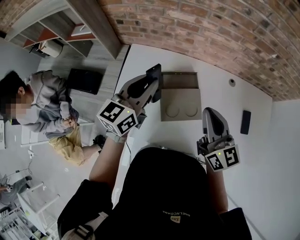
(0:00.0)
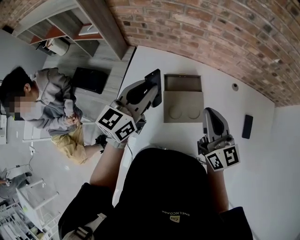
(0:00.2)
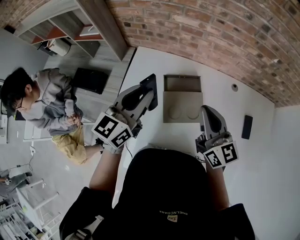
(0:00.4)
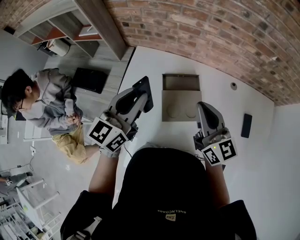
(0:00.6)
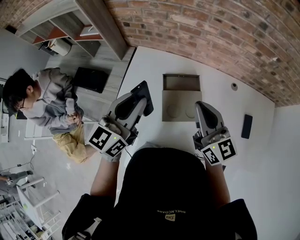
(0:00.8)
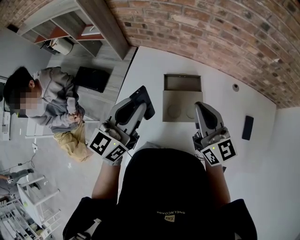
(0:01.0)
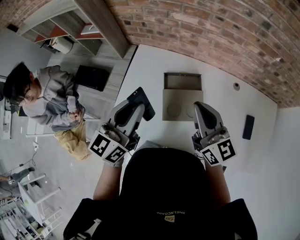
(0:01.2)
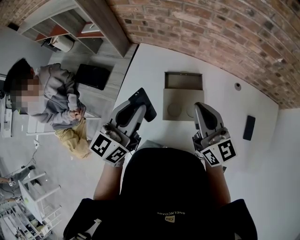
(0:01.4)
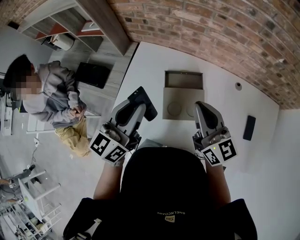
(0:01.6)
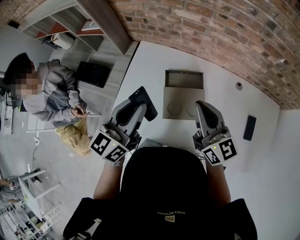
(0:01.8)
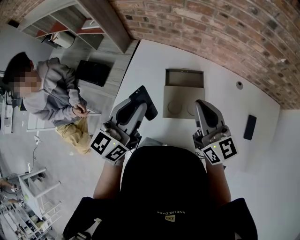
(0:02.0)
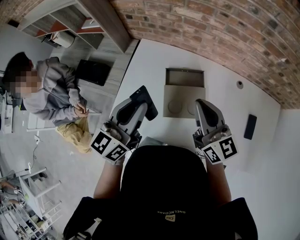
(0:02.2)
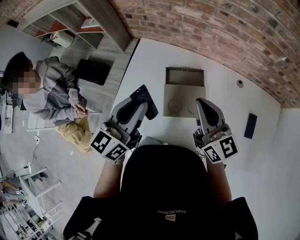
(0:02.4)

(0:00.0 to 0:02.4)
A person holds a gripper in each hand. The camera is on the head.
0:00.0 - 0:01.2: The left gripper goes about 10 cm backward.
0:01.2 - 0:02.4: The grippers stay close to where they were, moving slightly.

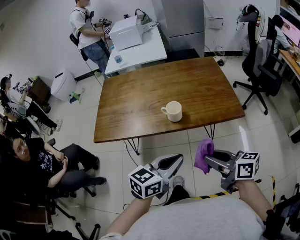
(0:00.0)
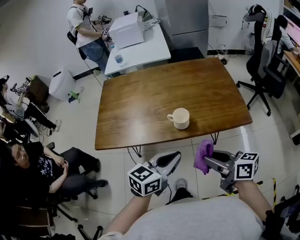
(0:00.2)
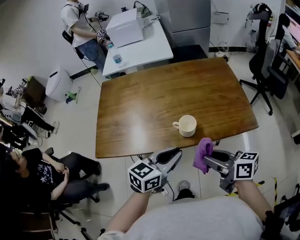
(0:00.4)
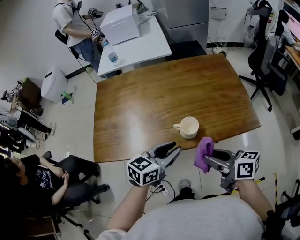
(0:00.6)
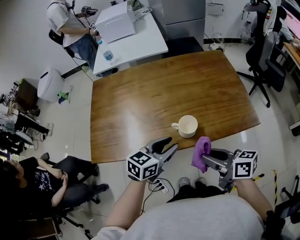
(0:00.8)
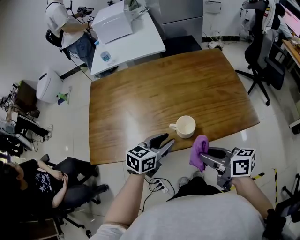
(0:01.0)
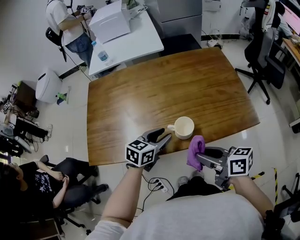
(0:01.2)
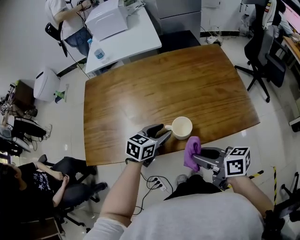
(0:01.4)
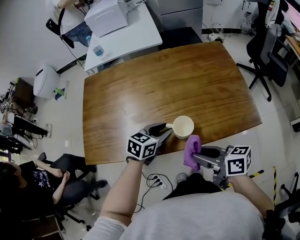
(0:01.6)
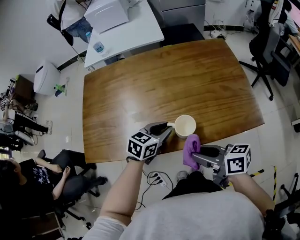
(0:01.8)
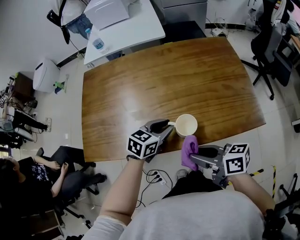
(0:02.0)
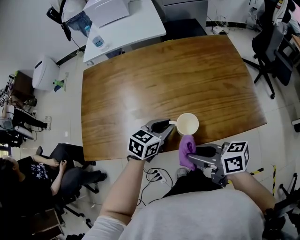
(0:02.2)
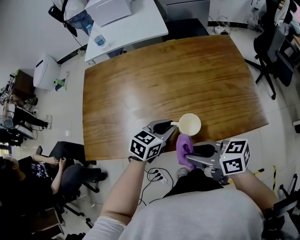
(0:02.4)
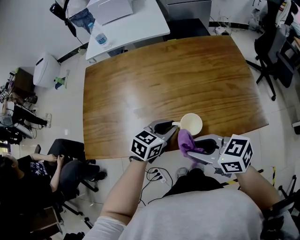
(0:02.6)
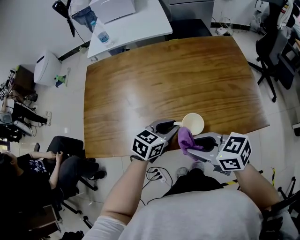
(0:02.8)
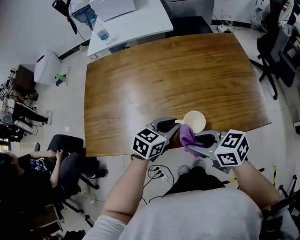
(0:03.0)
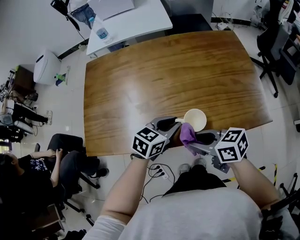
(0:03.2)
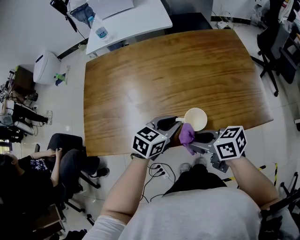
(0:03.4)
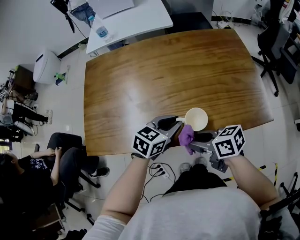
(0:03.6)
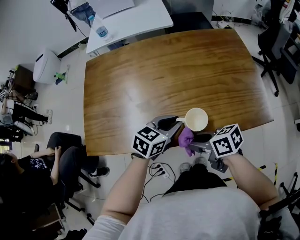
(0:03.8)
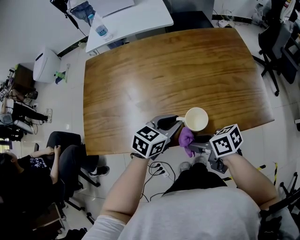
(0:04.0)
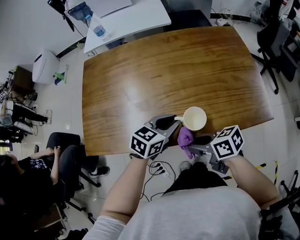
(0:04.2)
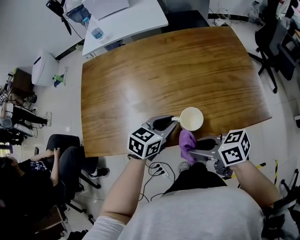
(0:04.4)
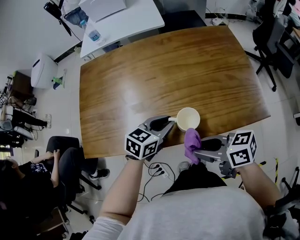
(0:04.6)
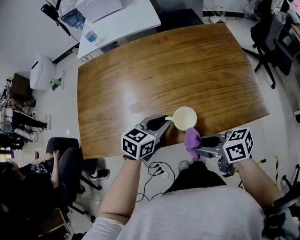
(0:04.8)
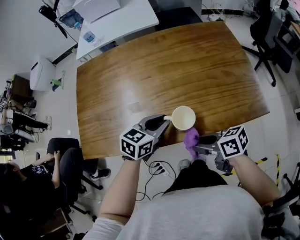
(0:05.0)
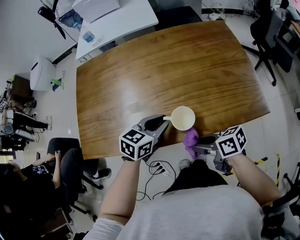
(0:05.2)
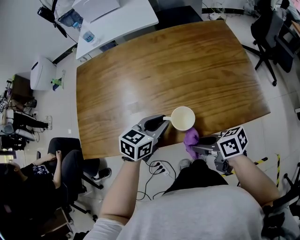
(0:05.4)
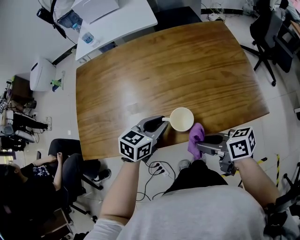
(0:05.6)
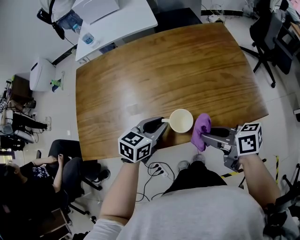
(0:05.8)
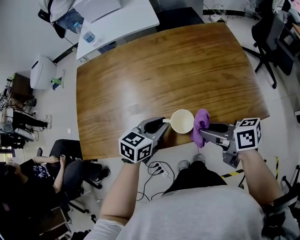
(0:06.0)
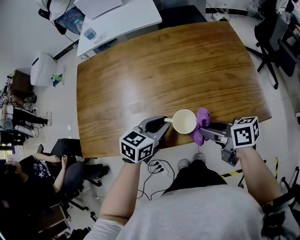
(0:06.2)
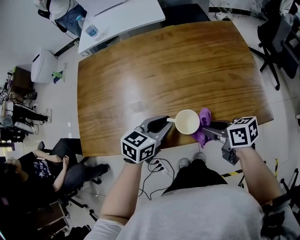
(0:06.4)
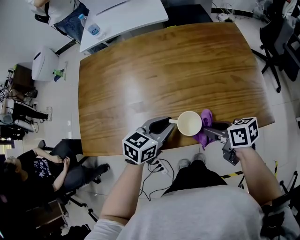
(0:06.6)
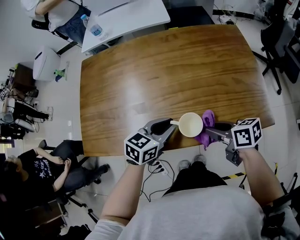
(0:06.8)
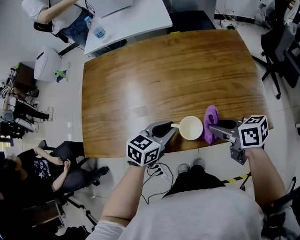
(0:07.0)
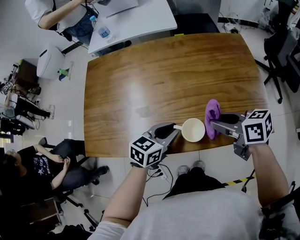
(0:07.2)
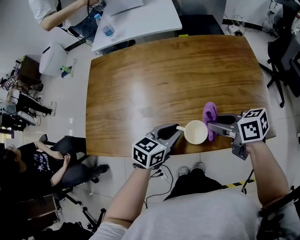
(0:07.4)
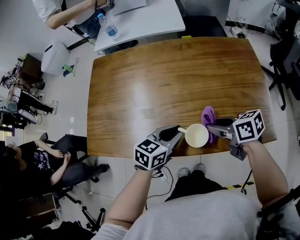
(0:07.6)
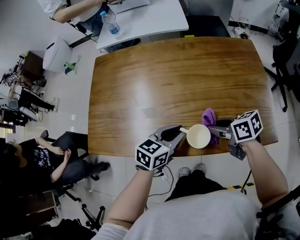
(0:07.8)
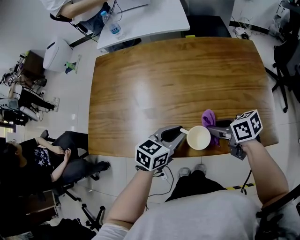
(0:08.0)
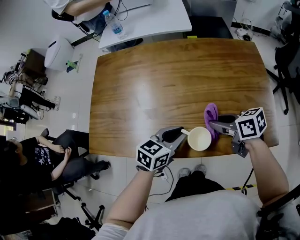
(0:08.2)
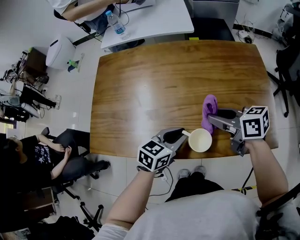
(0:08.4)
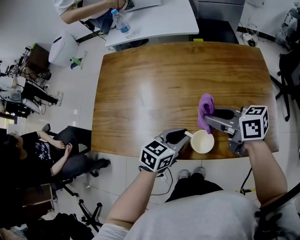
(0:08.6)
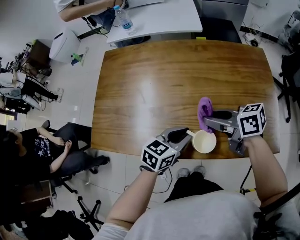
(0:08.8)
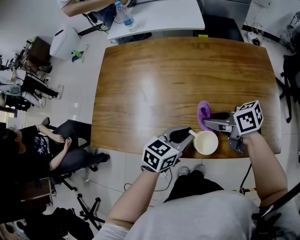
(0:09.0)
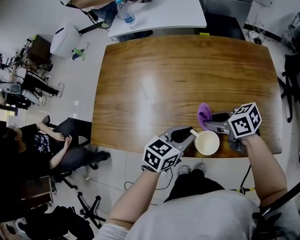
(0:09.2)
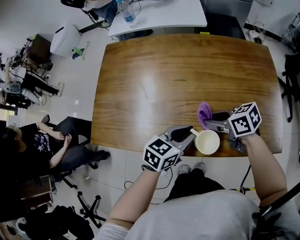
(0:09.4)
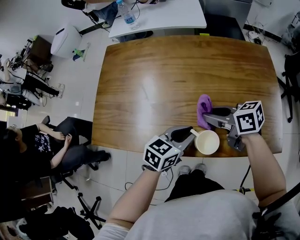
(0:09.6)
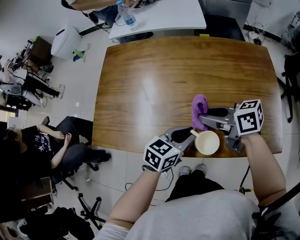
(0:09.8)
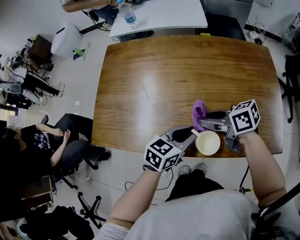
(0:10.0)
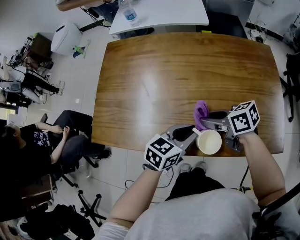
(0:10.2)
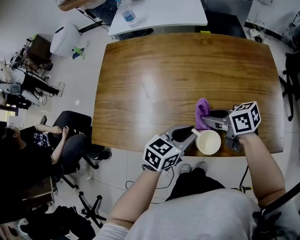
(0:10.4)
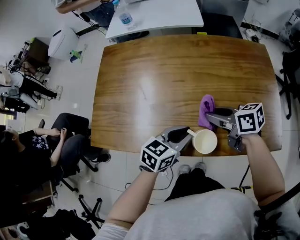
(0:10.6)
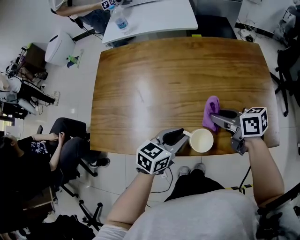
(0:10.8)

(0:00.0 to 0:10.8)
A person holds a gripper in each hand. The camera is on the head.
0:00.0 - 0:01.6: The left gripper moves forward and downward, roughly 35 cm, and opens up, while the right gripper is displaced forward by roughly 20 cm.
0:01.6 - 0:03.0: The right gripper moves some 5 cm, and changes its angle by roughly 30 degrees.
0:03.0 - 0:04.6: The right gripper goes downward and returns, about 5 cm each way.
0:04.6 - 0:06.2: The right gripper ends up about 10 cm from where it was.
0:06.2 - 0:07.8: The right gripper swings up and down, roughly 10 cm each way, with 2 reversals, and changes its angle by approximately 20 degrees.
0:07.8 - 0:09.2: The right gripper goes upward and returns, some 10 cm each way.
0:09.2 - 0:10.8: The right gripper moves up and down over about 10 cm, changing direction 2 times.

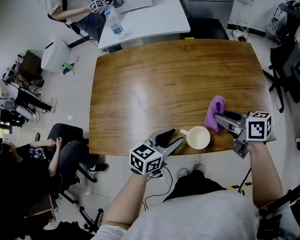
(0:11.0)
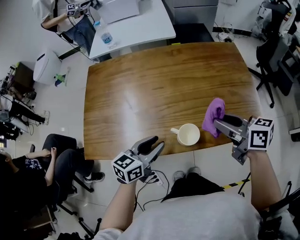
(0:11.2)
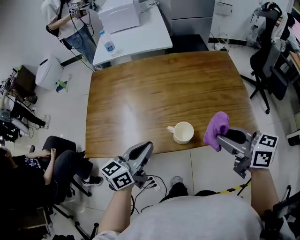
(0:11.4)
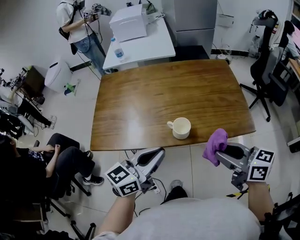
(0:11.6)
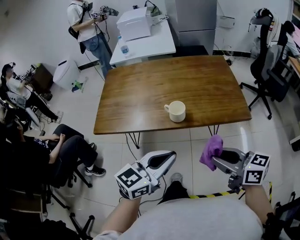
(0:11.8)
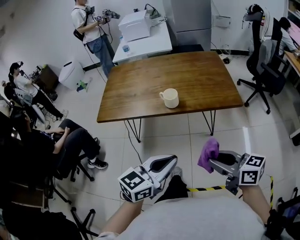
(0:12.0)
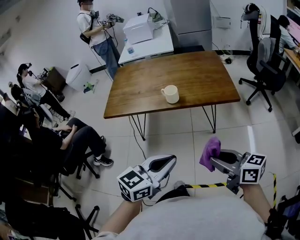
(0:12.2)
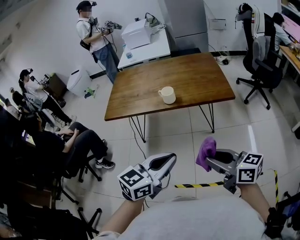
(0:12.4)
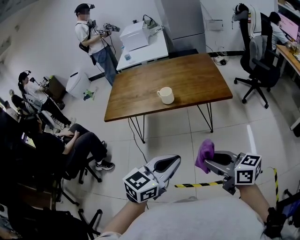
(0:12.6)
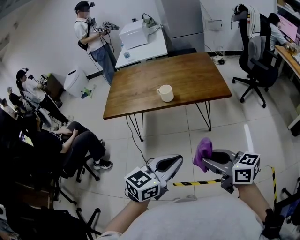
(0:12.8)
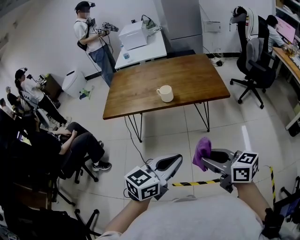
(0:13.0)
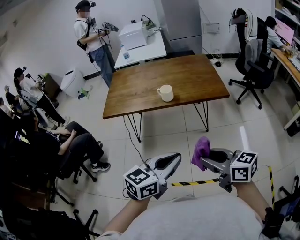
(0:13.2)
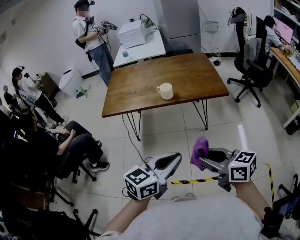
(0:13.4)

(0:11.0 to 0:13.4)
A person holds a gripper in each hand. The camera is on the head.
0:11.0 - 0:12.2: Both grippers are carried backward, roughly 50 cm. The left gripper travels upward by some 20 cm, and closes up.
0:12.2 - 0:13.4: The left gripper moves backward, roughly 10 cm; the right gripper shifts about 10 cm backward and to the left.

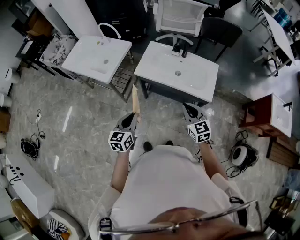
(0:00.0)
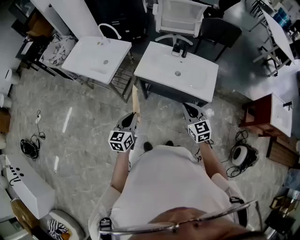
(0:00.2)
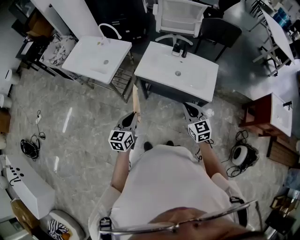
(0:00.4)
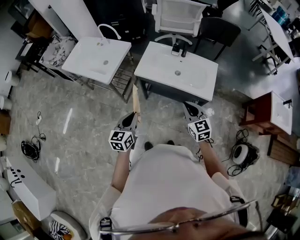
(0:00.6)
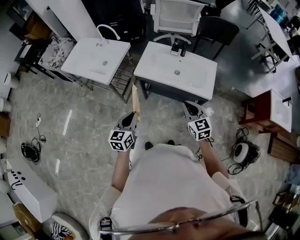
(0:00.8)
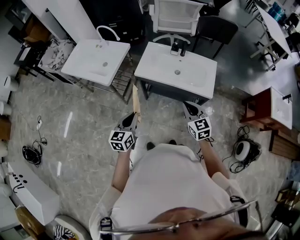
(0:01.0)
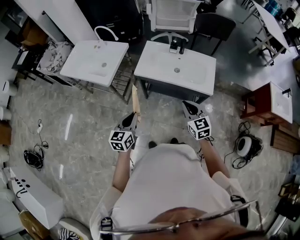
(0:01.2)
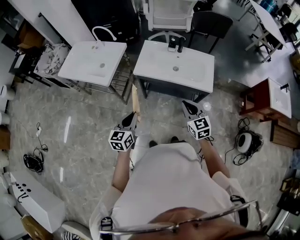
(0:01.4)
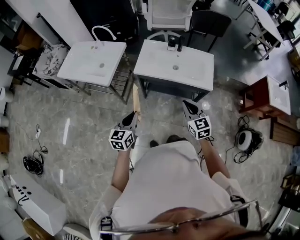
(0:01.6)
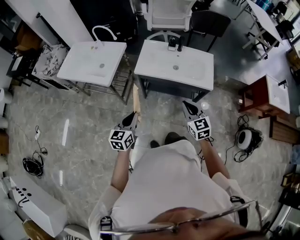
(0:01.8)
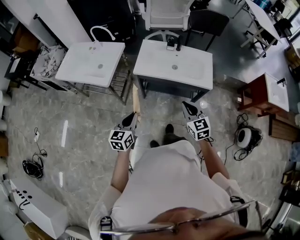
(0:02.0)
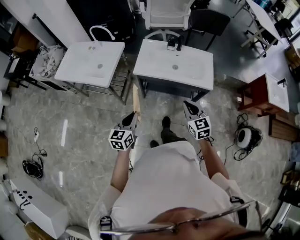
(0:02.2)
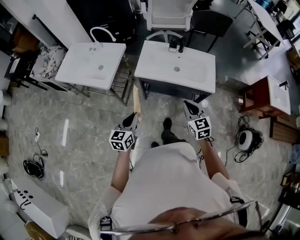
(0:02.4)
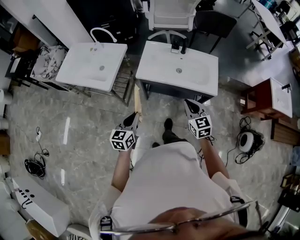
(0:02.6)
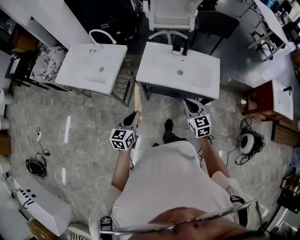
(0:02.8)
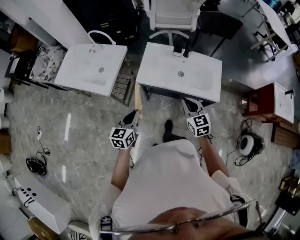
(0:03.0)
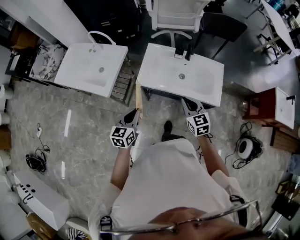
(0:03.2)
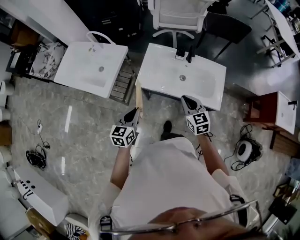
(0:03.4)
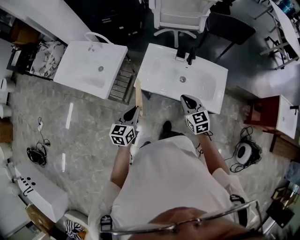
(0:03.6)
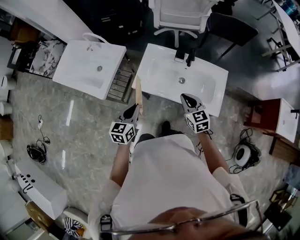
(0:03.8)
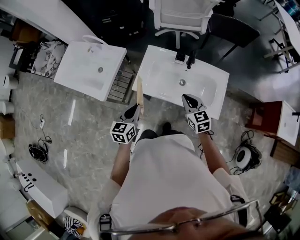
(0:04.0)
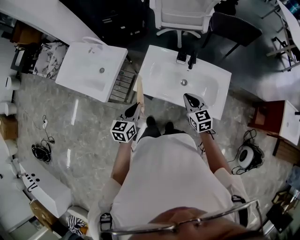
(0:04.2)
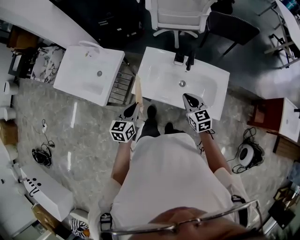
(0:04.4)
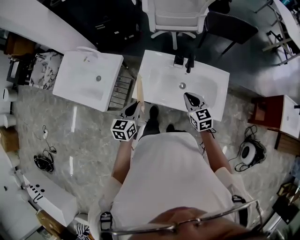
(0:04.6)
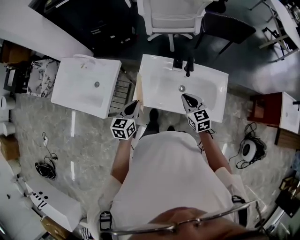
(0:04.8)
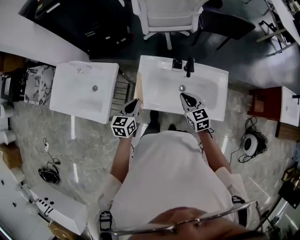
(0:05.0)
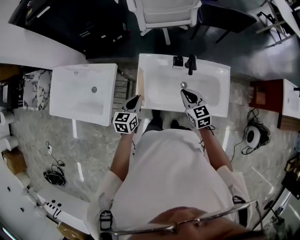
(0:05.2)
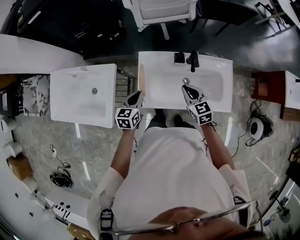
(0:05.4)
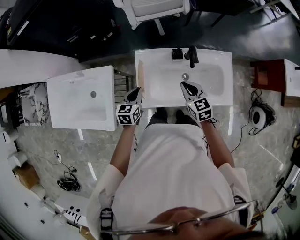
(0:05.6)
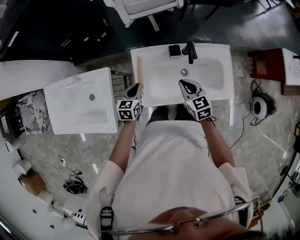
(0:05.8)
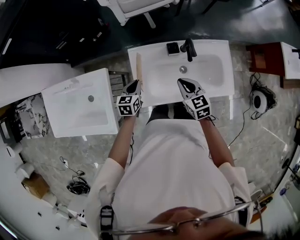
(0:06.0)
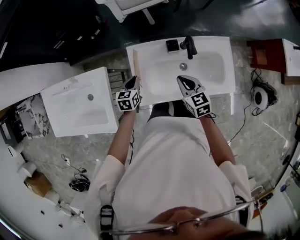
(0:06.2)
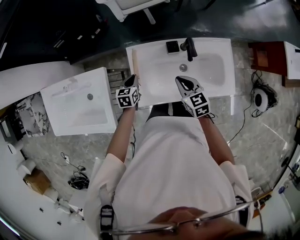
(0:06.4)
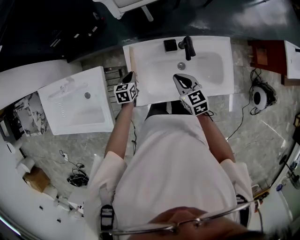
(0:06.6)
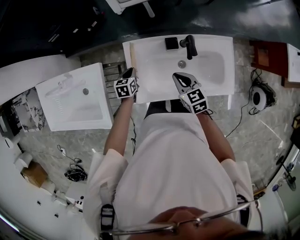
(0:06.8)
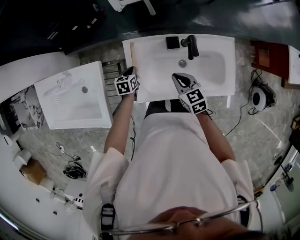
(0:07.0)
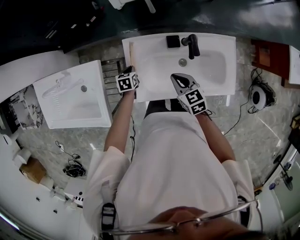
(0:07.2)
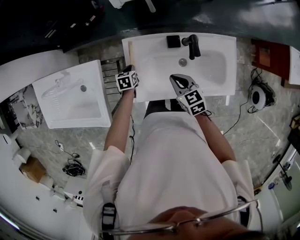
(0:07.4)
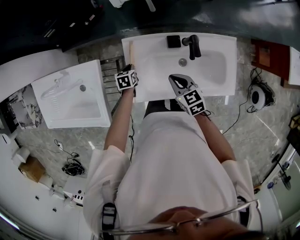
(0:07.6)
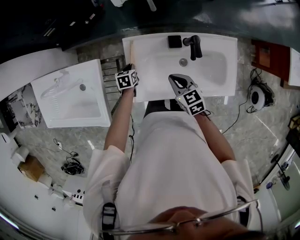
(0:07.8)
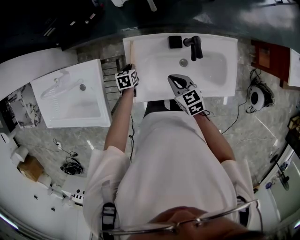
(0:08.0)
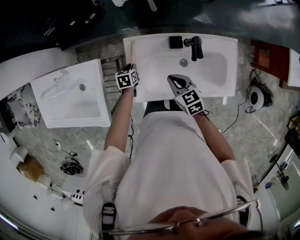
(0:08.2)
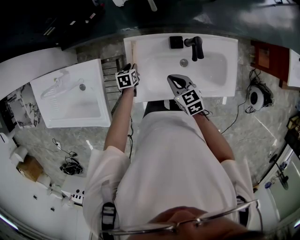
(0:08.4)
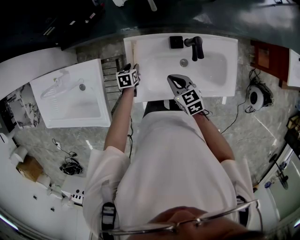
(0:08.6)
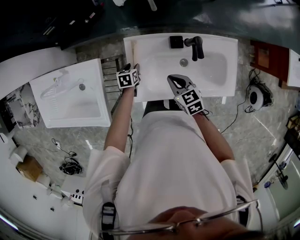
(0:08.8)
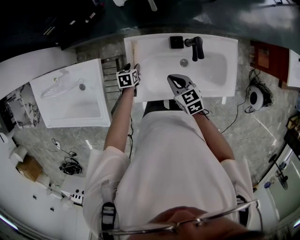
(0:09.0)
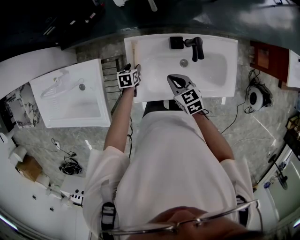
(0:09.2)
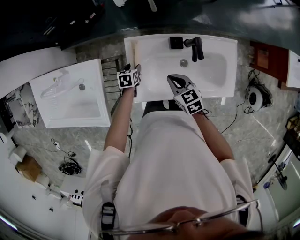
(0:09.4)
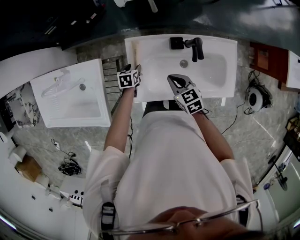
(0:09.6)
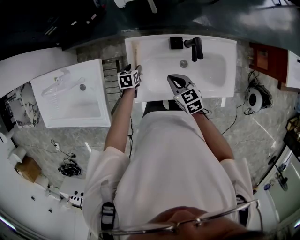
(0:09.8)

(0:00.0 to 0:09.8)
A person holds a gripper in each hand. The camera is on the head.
0:00.0 - 0:01.4: The grippers stay close to where they were, moving slightly.
0:01.4 - 0:02.8: Both grippers move forward, some 10 cm.
0:02.8 - 0:04.2: Both grippers move forward, some 20 cm.
0:04.2 - 0:05.6: The left gripper moves forward and downward, roughly 25 cm, and swivels approximately 20 degrees; the right gripper moves forward and to the left, about 15 cm.
0:05.6 - 0:07.0: The left gripper goes approximately 20 cm downward and forward, and swivels some 20 degrees. The right gripper shifts some 5 cm downward.
0:07.0 - 0:08.4: The left gripper opens its fingers.
0:08.4 - 0:09.8: The left gripper opens up.
